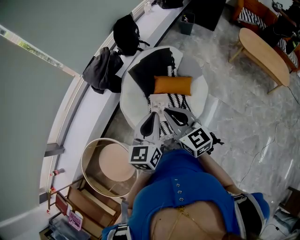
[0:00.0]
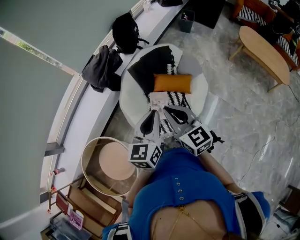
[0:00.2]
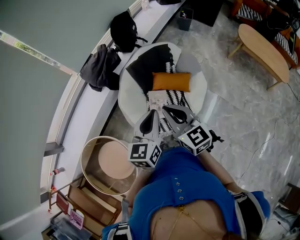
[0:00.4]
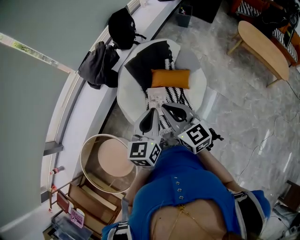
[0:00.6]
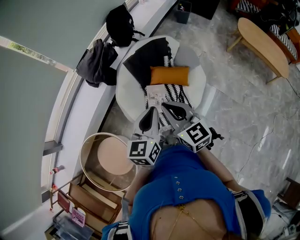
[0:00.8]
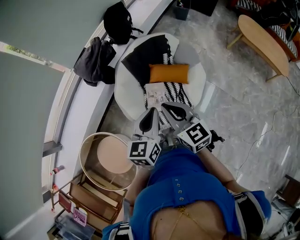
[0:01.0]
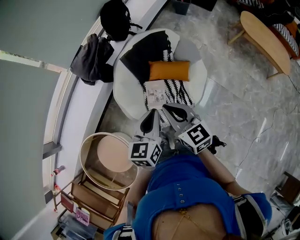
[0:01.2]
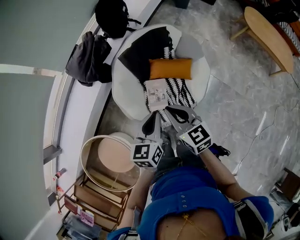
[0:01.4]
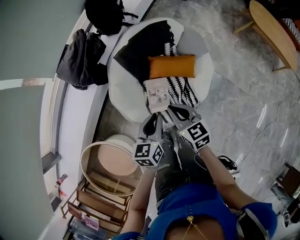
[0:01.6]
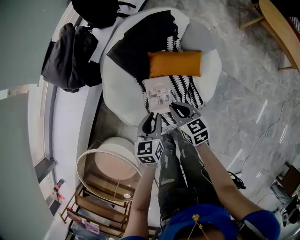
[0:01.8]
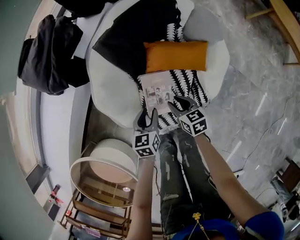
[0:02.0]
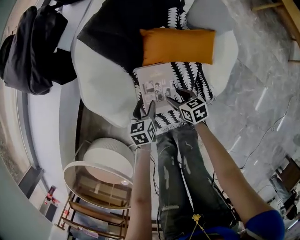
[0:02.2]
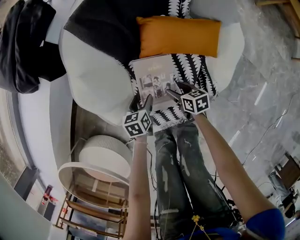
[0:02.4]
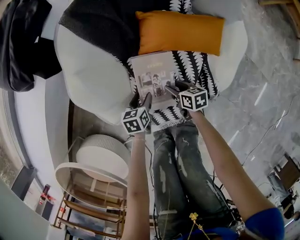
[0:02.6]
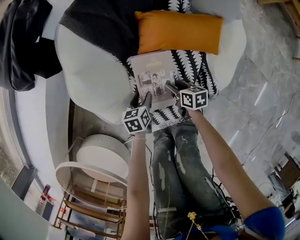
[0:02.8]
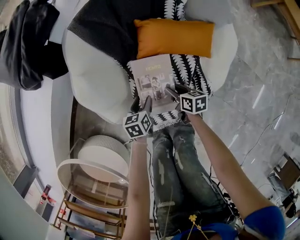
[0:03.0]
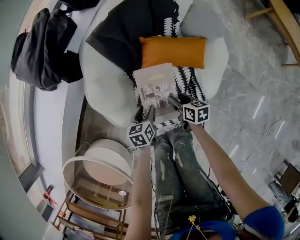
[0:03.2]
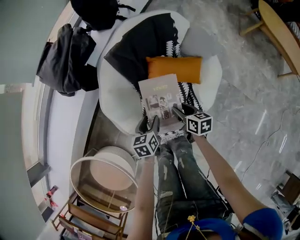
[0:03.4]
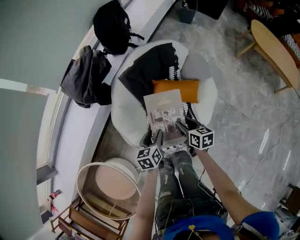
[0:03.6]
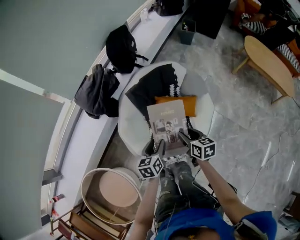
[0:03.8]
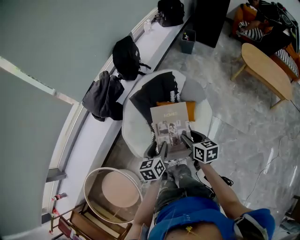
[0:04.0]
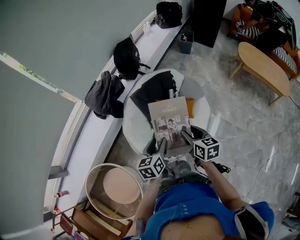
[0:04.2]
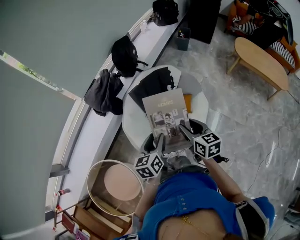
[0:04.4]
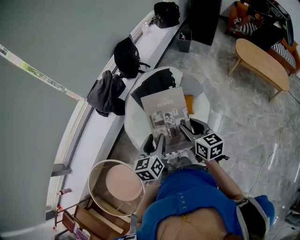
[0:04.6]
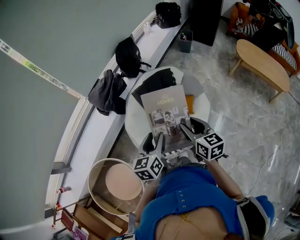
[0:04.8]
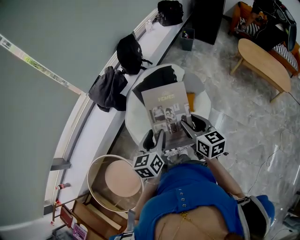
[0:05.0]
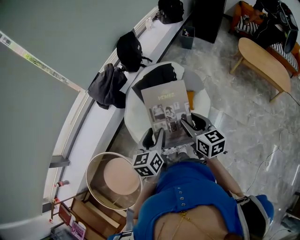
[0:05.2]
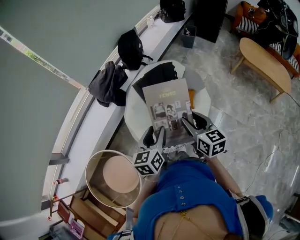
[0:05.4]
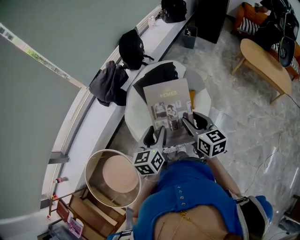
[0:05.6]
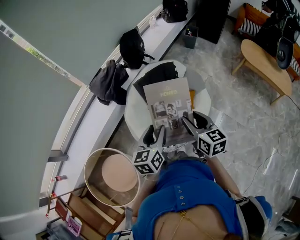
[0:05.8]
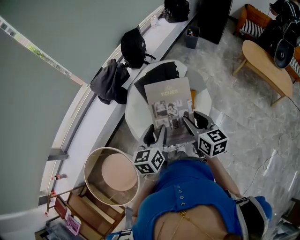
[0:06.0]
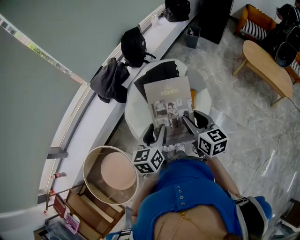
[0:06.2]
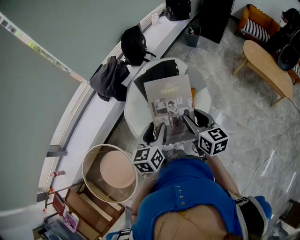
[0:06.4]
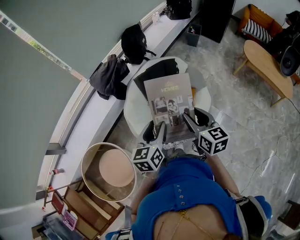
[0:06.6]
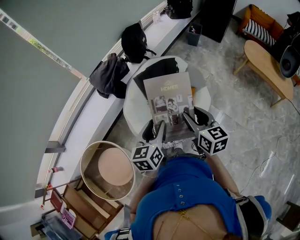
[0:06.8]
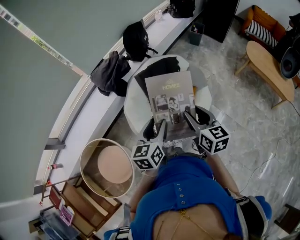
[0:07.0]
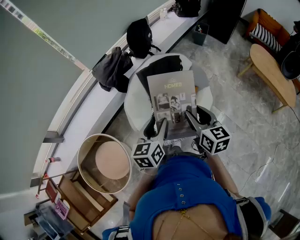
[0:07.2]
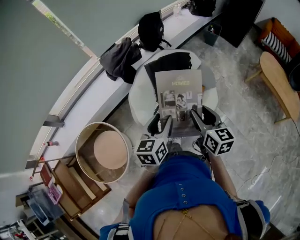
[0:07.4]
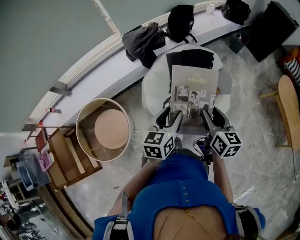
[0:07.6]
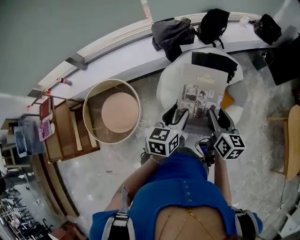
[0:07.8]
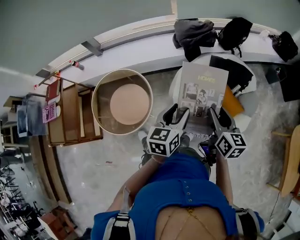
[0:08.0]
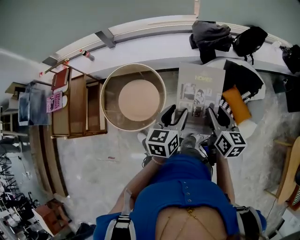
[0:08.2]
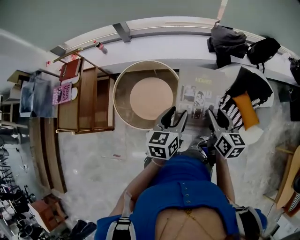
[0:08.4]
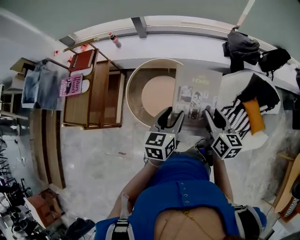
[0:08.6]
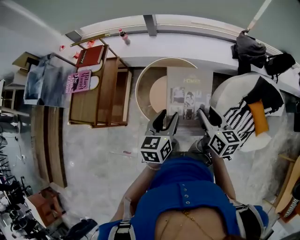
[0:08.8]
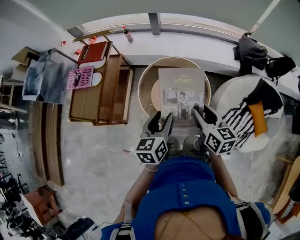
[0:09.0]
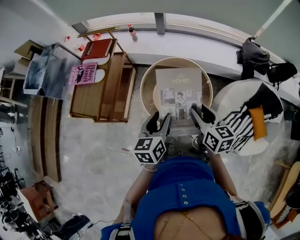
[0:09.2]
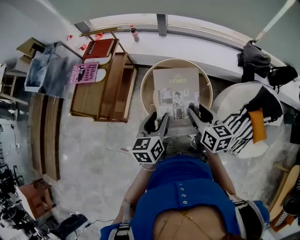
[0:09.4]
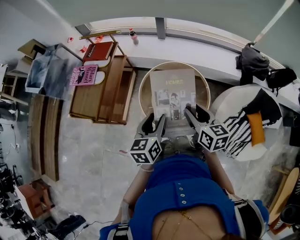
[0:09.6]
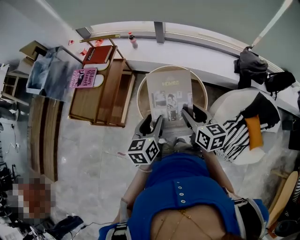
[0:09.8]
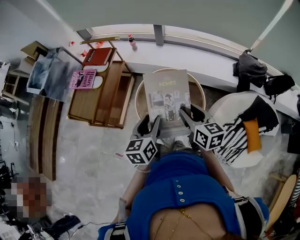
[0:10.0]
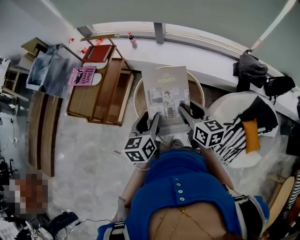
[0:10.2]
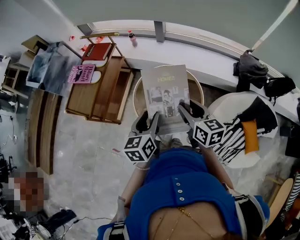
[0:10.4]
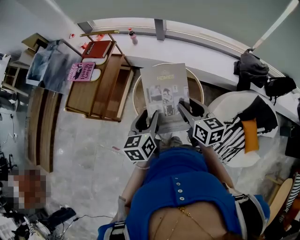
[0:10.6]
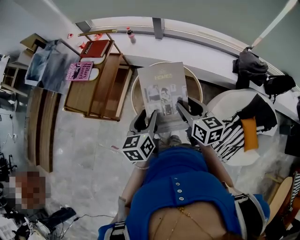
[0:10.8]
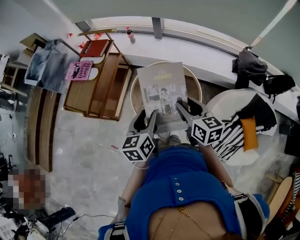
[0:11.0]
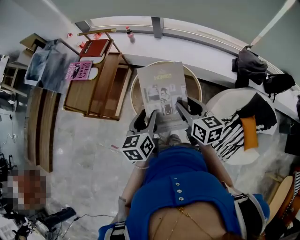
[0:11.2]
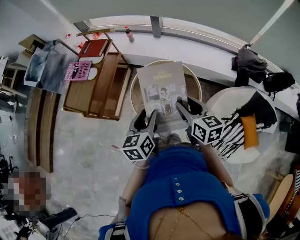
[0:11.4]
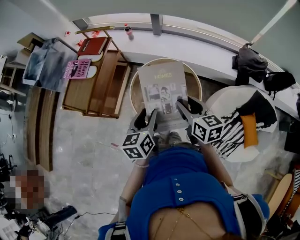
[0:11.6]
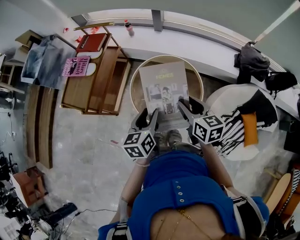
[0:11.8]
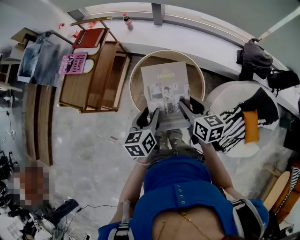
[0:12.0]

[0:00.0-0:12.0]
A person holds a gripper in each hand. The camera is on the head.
0:00.0 to 0:01.6: Both grippers travel together downward and forward, roughly 30 cm. The left gripper rotates roughly 20 degrees. Meanwhile the right gripper rotates approximately 20 degrees.
0:01.6 to 0:03.0: The two grippers go about 50 cm downward. The left gripper swivels some 20 degrees, and opens up; the right gripper rotates about 40 degrees, and opens up.
0:03.0 to 0:04.4: Both grippers move upward, some 70 cm. The right gripper rotates roughly 30 degrees, while the left gripper turns by roughly 30 degrees.
0:04.4 to 0:06.0: The two grippers go approximately 5 cm upward.
0:06.0 to 0:07.6: There are only small adjustments of the grippers.
0:07.6 to 0:09.0: The pair of grippers is taken some 80 cm. The right gripper turns by about 40 degrees. The left gripper rotates about 50 degrees.
0:09.0 to 0:10.4: The right gripper shifts by roughly 5 cm.
0:10.4 to 0:12.0: Both grippers travel together downward, some 5 cm.

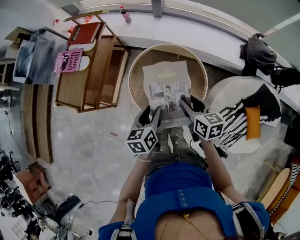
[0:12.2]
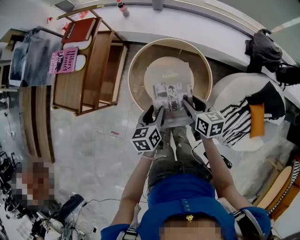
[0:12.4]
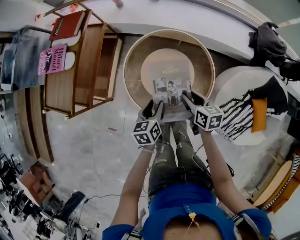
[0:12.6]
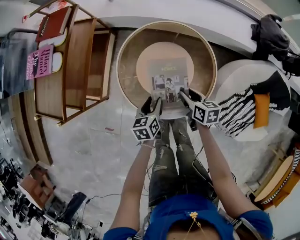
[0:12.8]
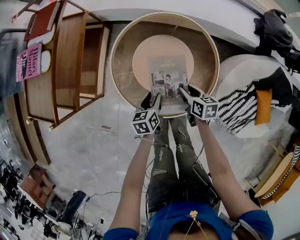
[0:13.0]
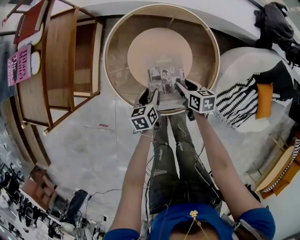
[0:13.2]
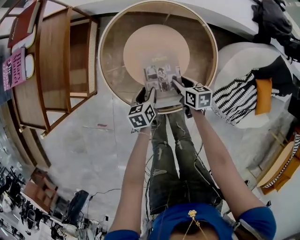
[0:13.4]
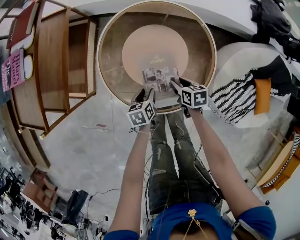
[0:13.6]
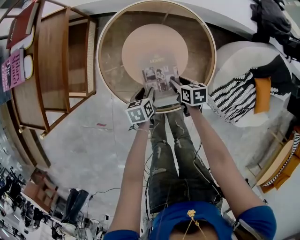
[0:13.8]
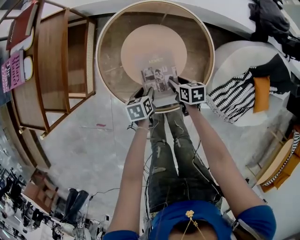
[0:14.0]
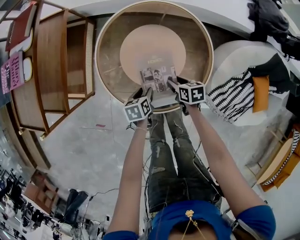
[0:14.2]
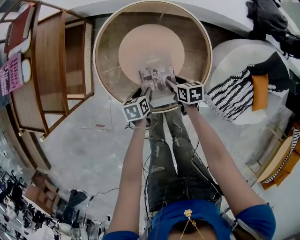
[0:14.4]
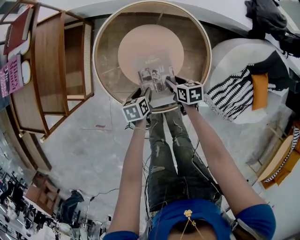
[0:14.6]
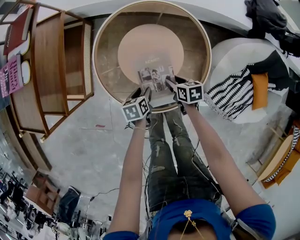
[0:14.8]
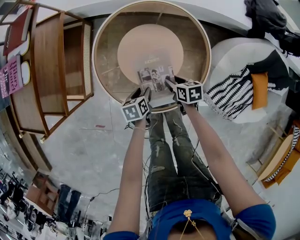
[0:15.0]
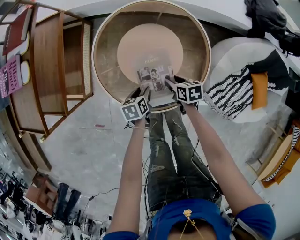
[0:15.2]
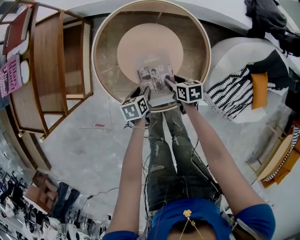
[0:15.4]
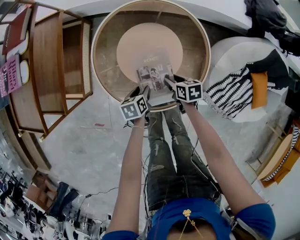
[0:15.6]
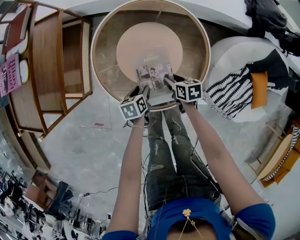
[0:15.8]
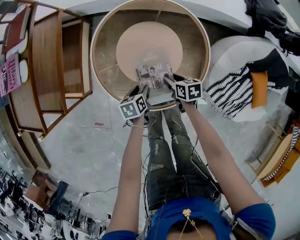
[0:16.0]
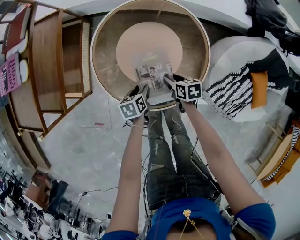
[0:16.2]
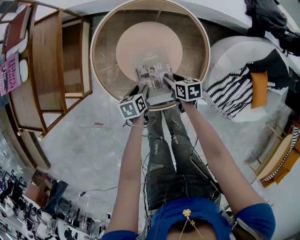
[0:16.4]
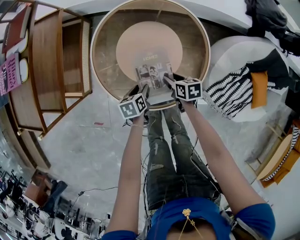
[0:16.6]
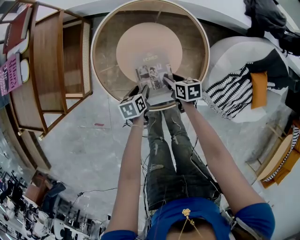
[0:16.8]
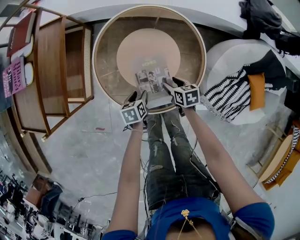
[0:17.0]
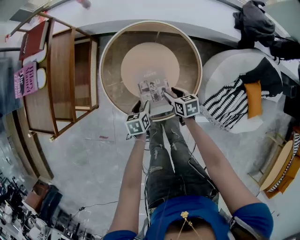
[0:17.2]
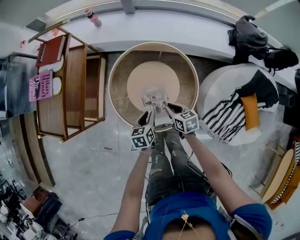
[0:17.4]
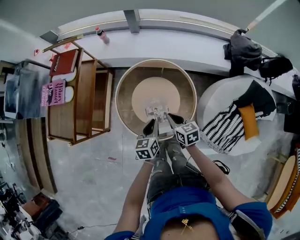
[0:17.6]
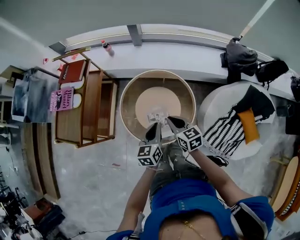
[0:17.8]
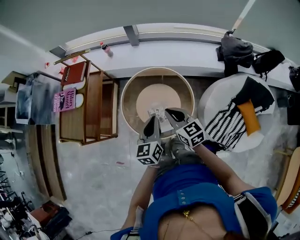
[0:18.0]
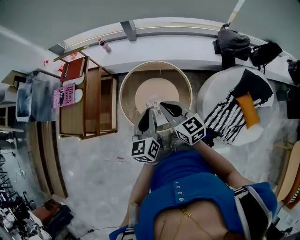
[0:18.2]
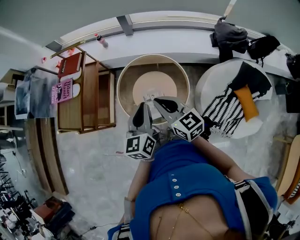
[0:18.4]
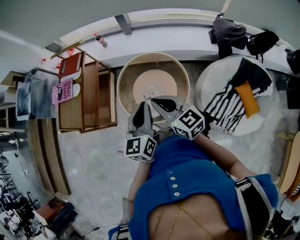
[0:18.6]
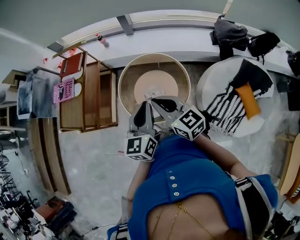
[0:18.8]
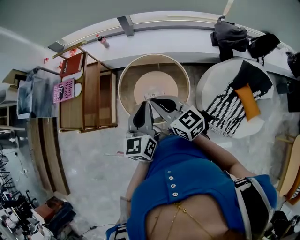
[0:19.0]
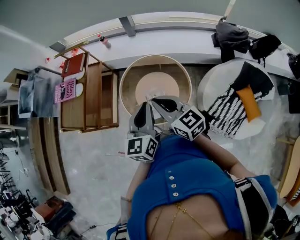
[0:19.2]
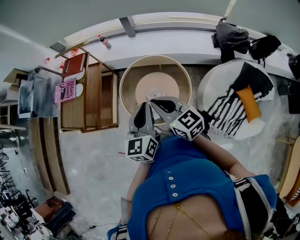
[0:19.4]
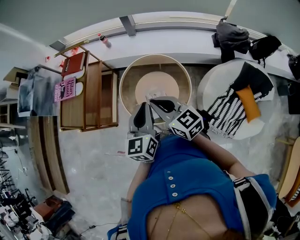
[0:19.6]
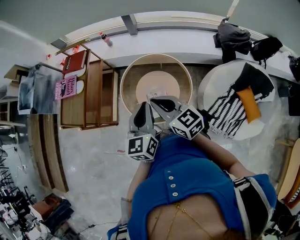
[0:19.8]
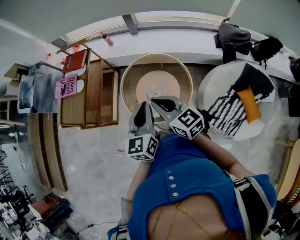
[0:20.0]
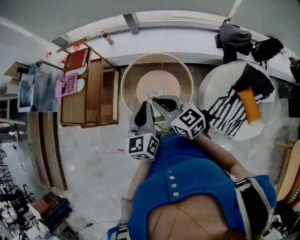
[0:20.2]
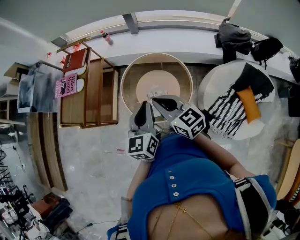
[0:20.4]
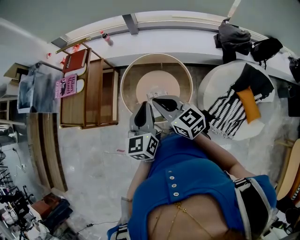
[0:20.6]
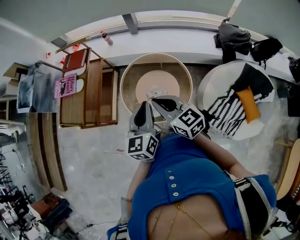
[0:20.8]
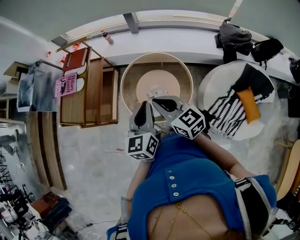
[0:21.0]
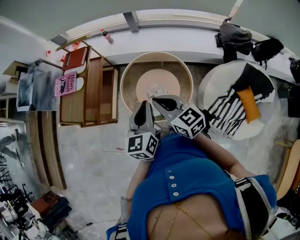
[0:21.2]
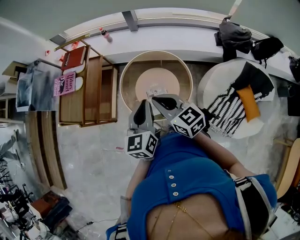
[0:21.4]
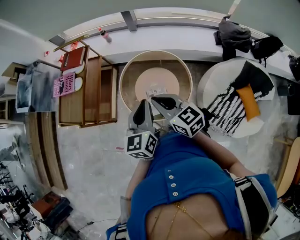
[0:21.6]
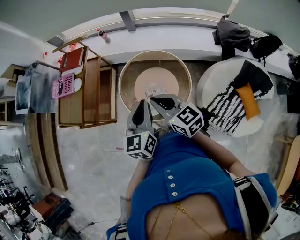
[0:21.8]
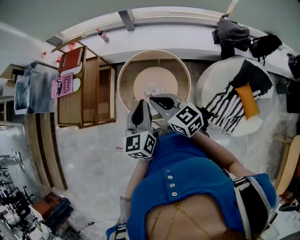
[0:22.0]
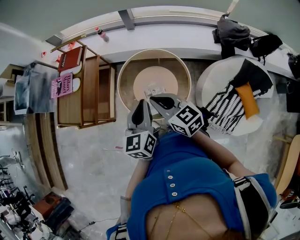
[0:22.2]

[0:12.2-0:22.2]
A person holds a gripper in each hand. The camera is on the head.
0:12.2 to 0:13.6: Both grippers move downward, roughly 40 cm. The right gripper changes its angle by some 30 degrees. Meanwhile the left gripper changes its angle by some 20 degrees.
0:13.6 to 0:15.0: The grippers move only a little.
0:15.0 to 0:16.4: The two grippers keep their place.
0:16.4 to 0:18.0: Both grippers travel together upward, roughly 50 cm. The right gripper tips its fingers upward by approximately 30 degrees, and closes. The left gripper tilts its fingers approximately 40 degrees upward, and closes up.
0:18.0 to 0:19.4: Both grippers move upward and backward, about 10 cm.
0:19.4 to 0:22.2: The grippers make only small movements.

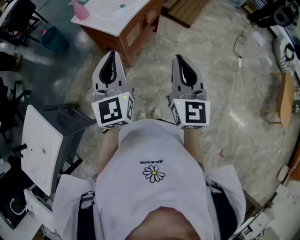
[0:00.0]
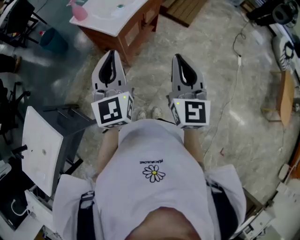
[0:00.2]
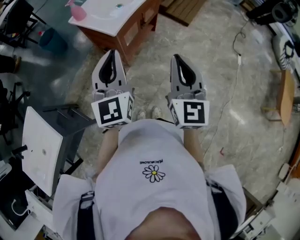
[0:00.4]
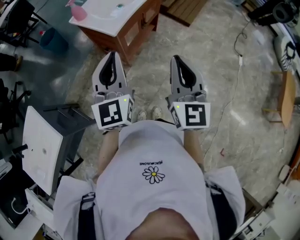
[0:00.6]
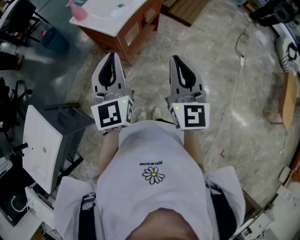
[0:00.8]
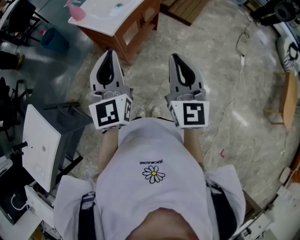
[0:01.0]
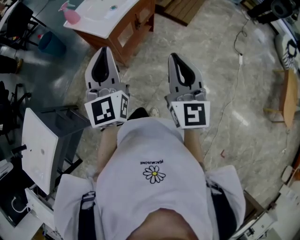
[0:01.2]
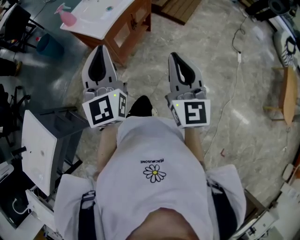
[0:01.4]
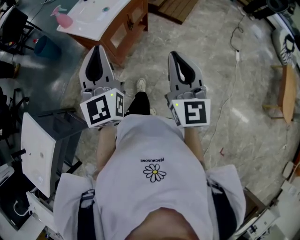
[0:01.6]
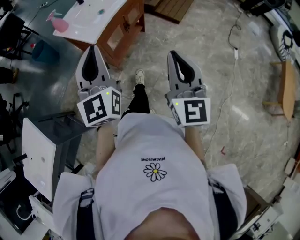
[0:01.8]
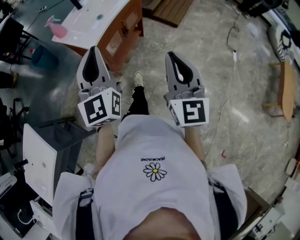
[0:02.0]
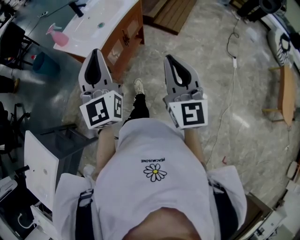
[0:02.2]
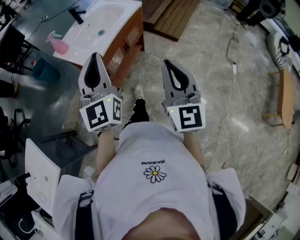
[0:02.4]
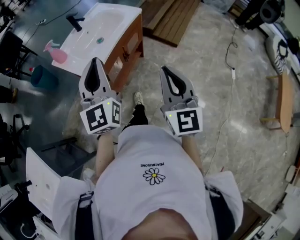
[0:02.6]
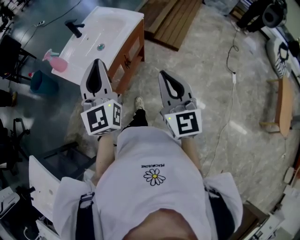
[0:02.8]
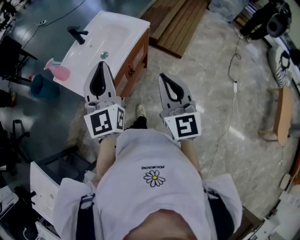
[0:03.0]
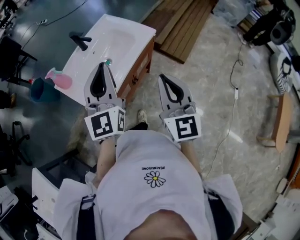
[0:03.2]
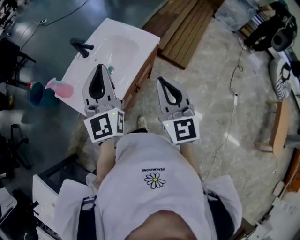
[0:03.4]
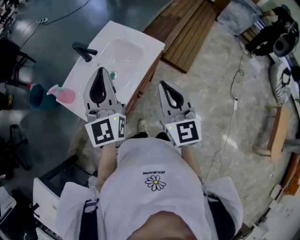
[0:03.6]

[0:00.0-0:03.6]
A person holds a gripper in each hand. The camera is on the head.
0:00.0 to 0:01.8: The two grippers go approximately 10 cm to the right.
0:01.8 to 0:03.6: Both grippers are carried forward, approximately 40 cm.
